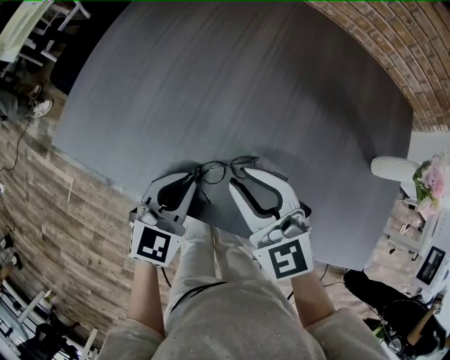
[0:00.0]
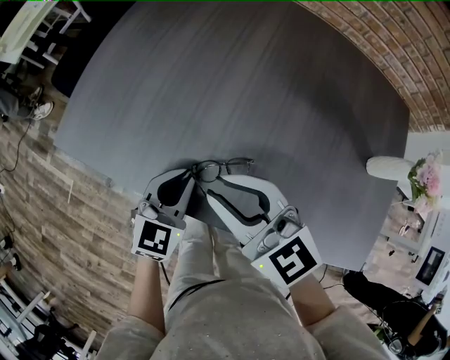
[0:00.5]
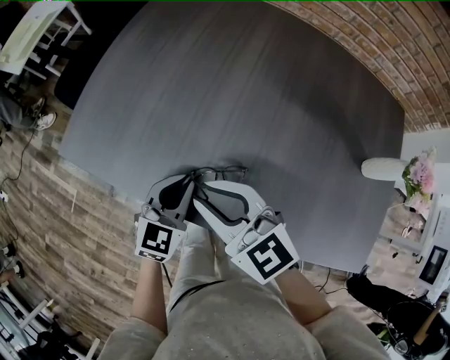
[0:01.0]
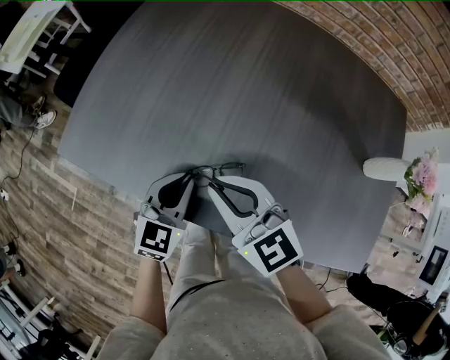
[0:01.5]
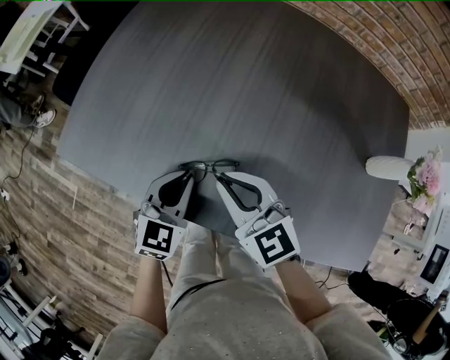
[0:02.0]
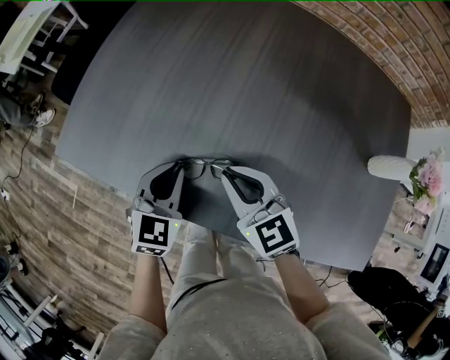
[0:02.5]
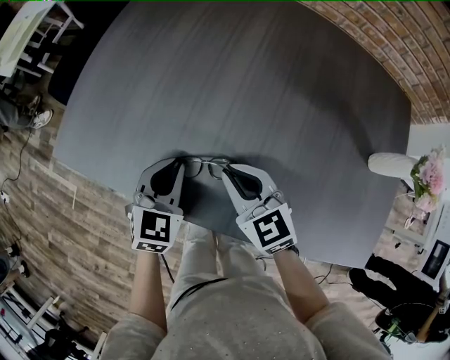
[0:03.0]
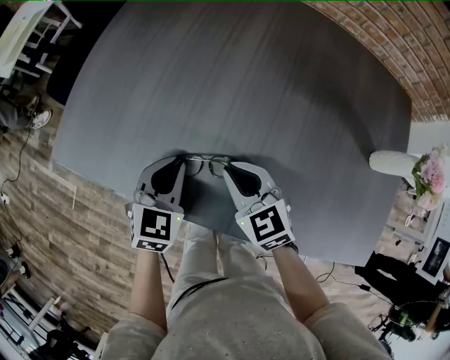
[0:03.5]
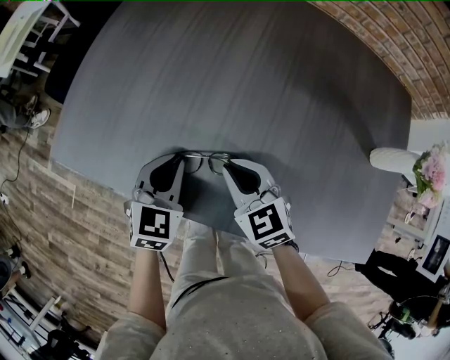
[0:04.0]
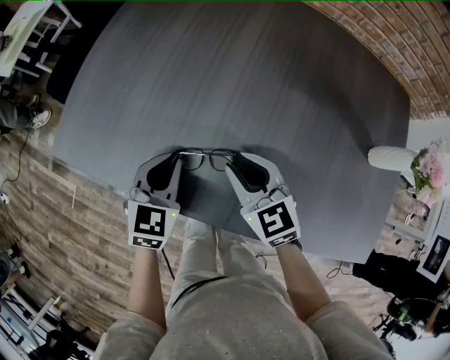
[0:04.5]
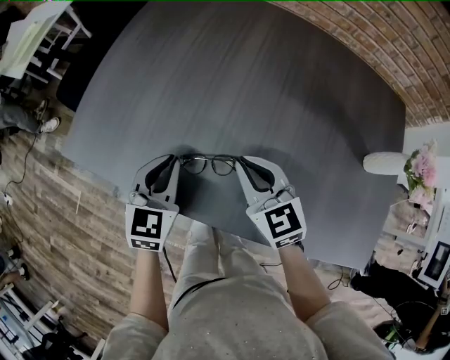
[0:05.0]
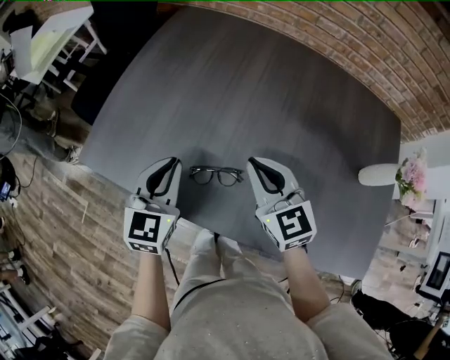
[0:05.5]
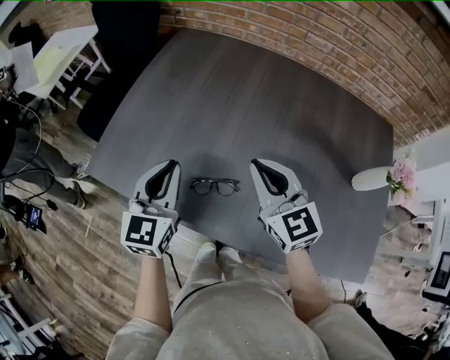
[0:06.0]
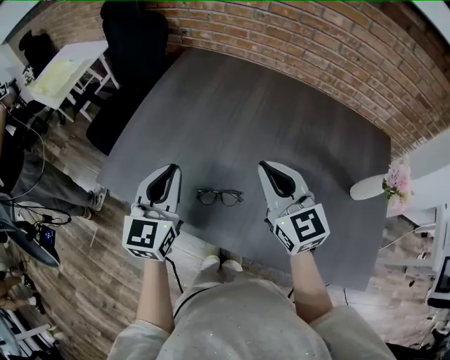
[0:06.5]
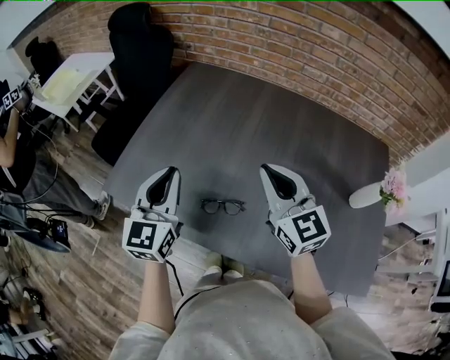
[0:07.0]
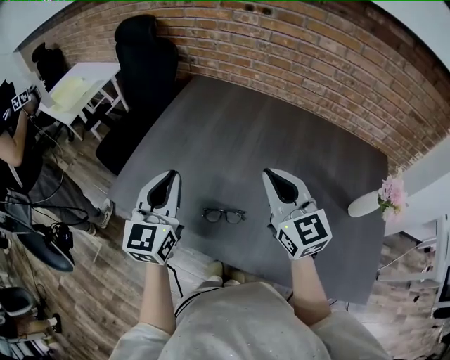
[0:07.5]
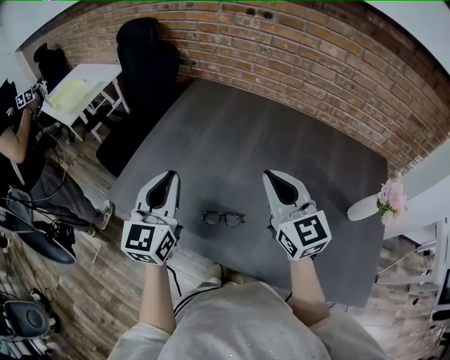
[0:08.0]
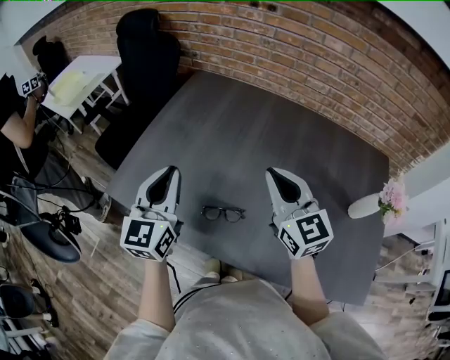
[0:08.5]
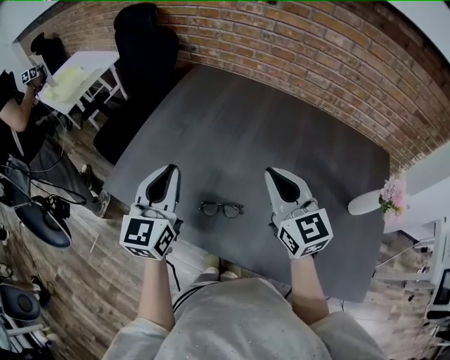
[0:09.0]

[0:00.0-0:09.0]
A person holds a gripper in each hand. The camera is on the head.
0:02.0 to 0:04.5: The right gripper heads downward, covering roughly 5 cm.
0:04.5 to 0:07.0: Both grippers move upward, about 25 cm. The left gripper rotates some 30 degrees; the right gripper turns by some 30 degrees, and closes its fingers.
0:07.0 to 0:09.0: There are only small adjustments of the grippers.

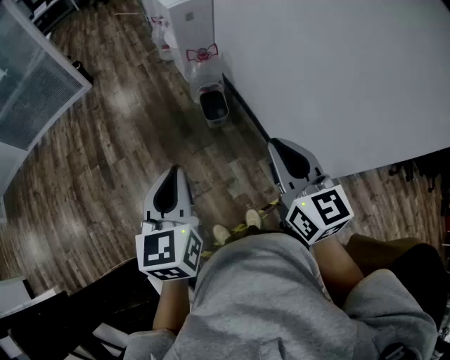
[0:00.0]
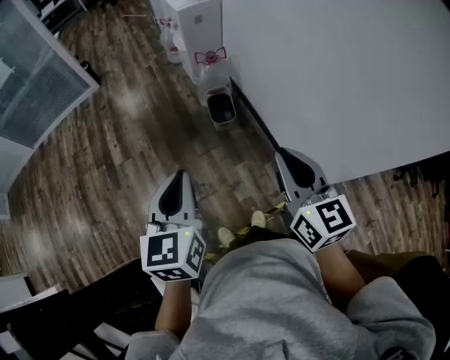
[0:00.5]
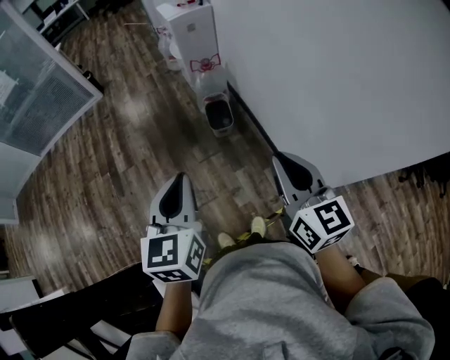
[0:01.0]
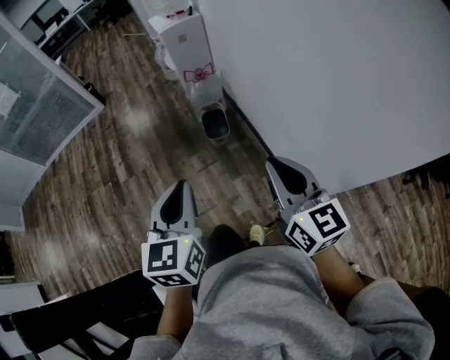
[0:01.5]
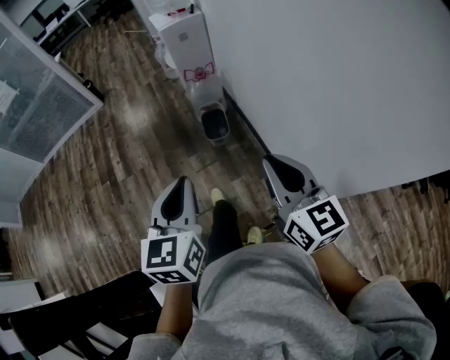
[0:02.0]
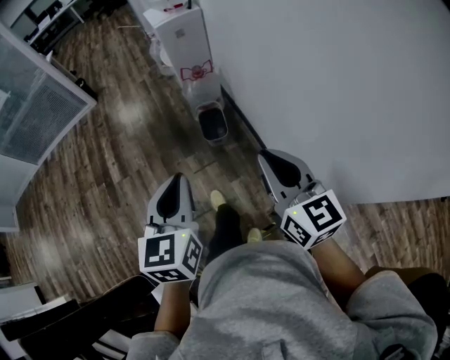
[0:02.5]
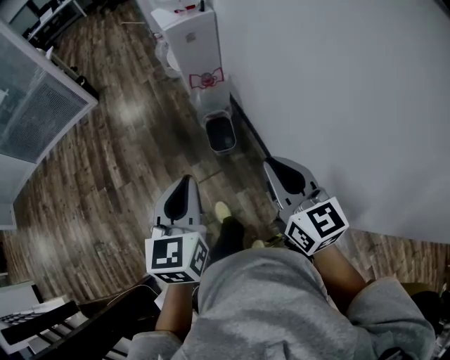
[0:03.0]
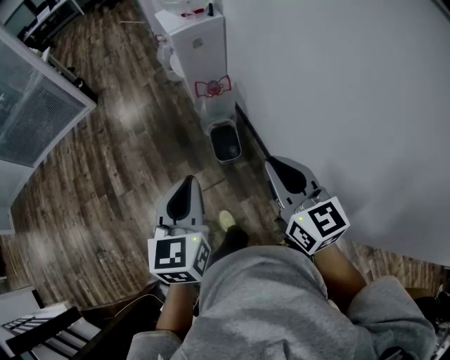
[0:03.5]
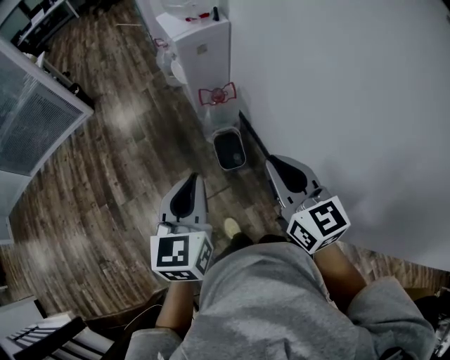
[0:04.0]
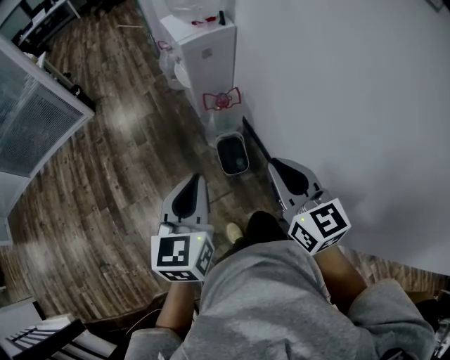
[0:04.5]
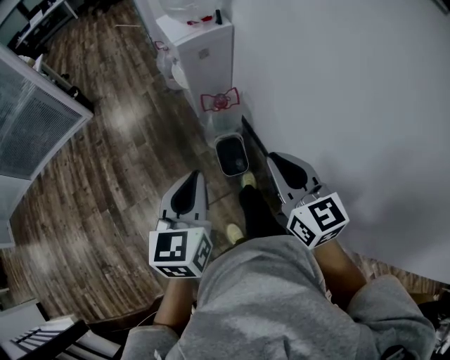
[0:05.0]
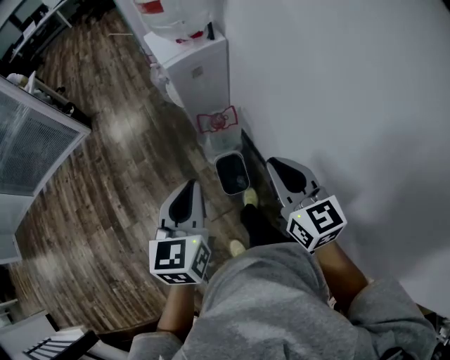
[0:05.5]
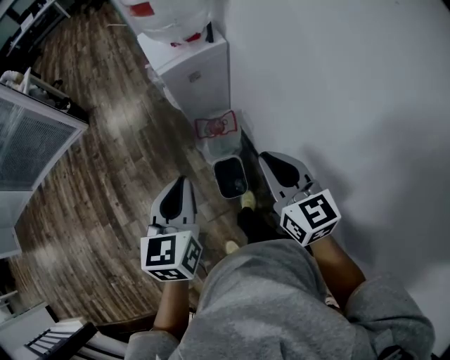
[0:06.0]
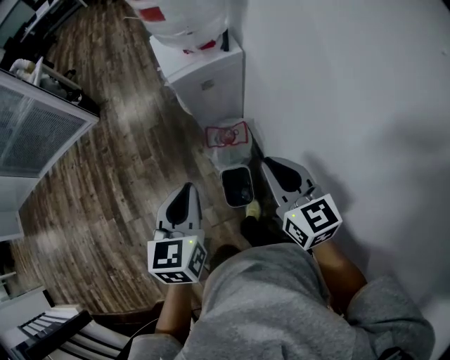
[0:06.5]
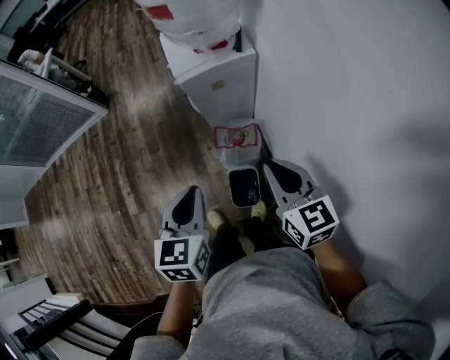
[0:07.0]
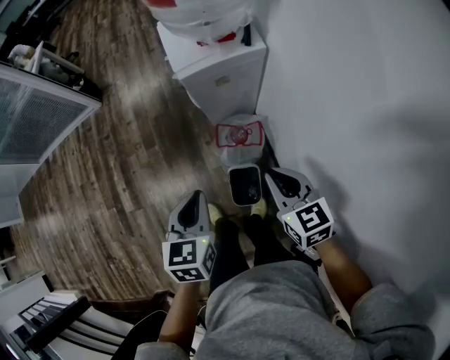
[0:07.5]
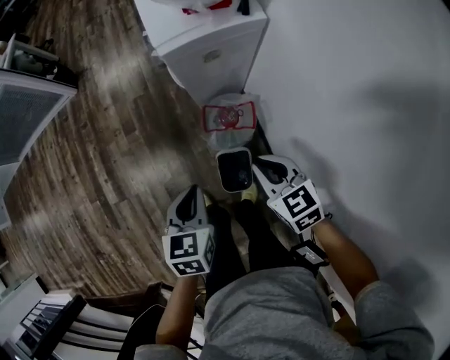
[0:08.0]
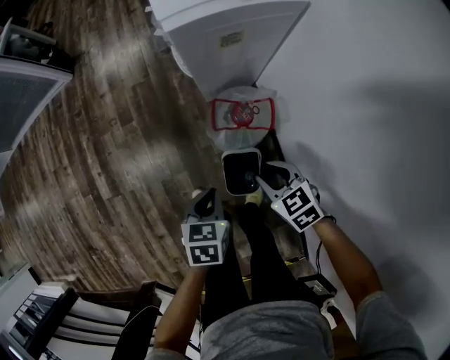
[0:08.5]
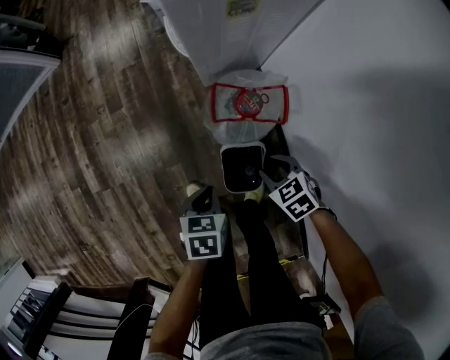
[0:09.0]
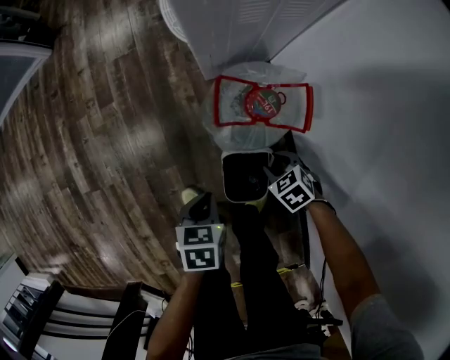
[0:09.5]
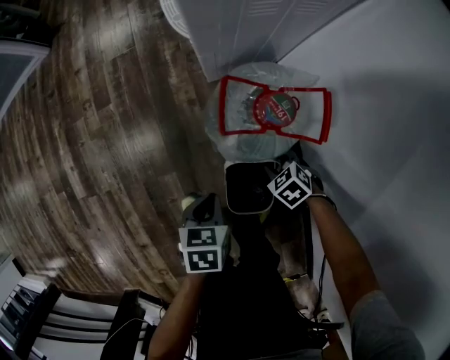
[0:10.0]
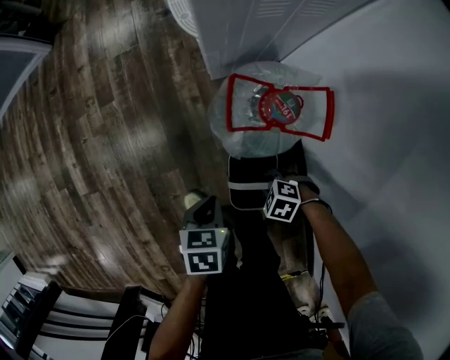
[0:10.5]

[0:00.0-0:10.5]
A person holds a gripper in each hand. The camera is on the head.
0:00.0 to 0:02.0: The grippers both shift to the right by about 10 cm.
0:02.0 to 0:04.0: Both grippers move forward, approximately 30 cm.
0:04.0 to 0:06.5: The grippers both shift forward by approximately 30 cm.
0:06.5 to 0:08.5: The two grippers go about 35 cm downward. The right gripper angles its fingers downward, by about 30 degrees, and opens up. The left gripper changes its angle by roughly 30 degrees.
0:08.5 to 0:10.5: Both grippers travel together downward, approximately 30 cm. The right gripper swivels approximately 50 degrees.

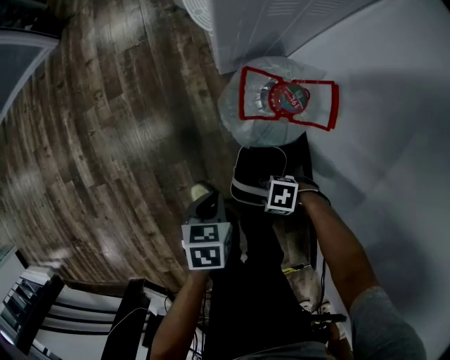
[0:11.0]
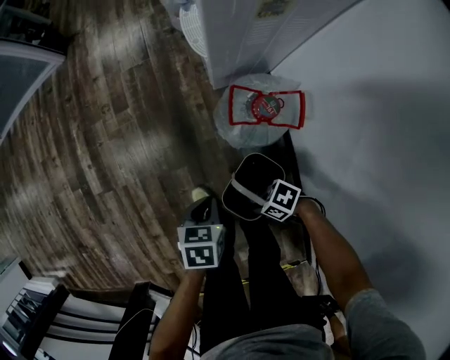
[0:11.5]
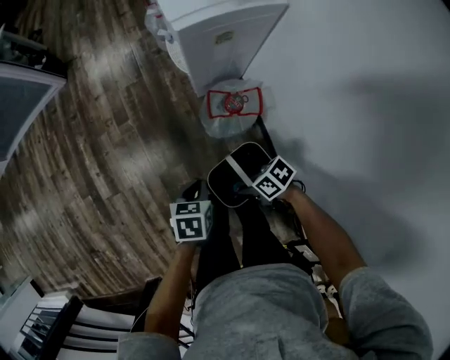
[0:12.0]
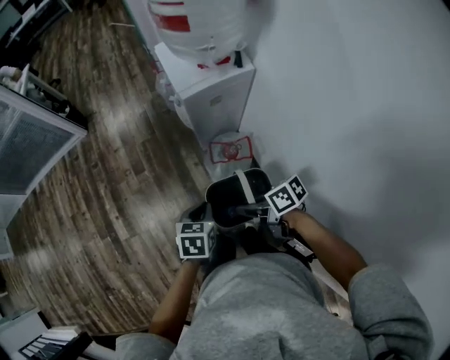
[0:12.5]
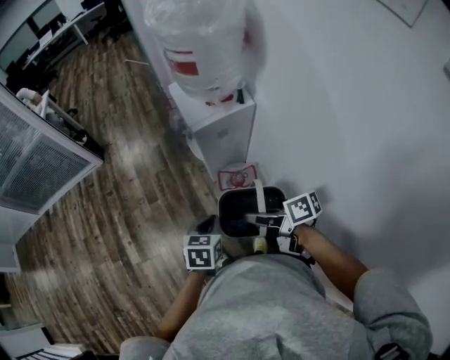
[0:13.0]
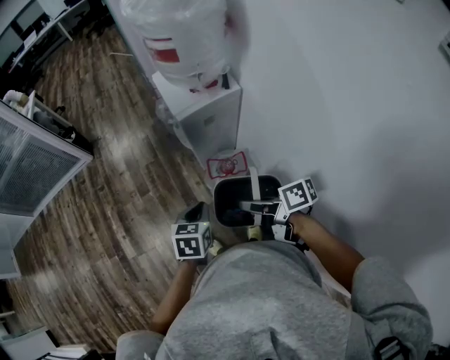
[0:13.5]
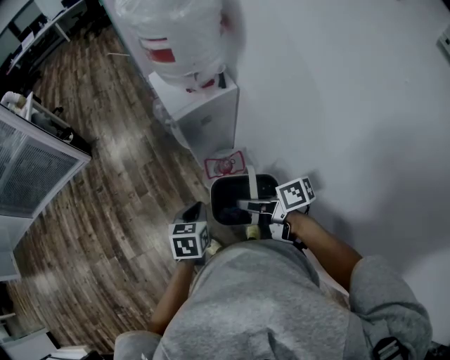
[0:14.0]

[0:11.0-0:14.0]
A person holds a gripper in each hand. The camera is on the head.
0:11.0 to 0:12.5: Both grippers travel together upward, approximately 40 cm. The right gripper turns by some 70 degrees.
0:12.5 to 0:14.0: Both grippers move upward, roughly 10 cm.

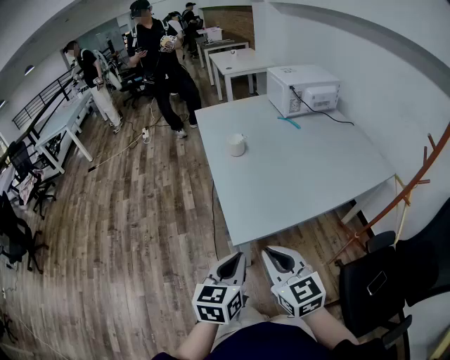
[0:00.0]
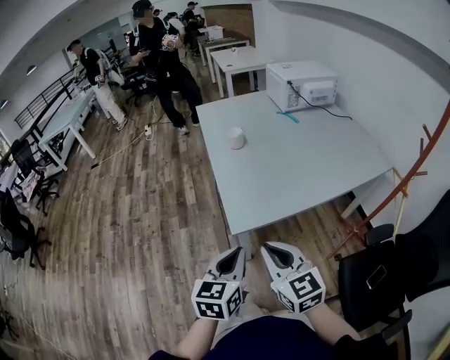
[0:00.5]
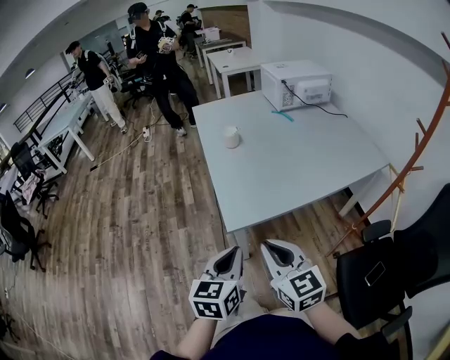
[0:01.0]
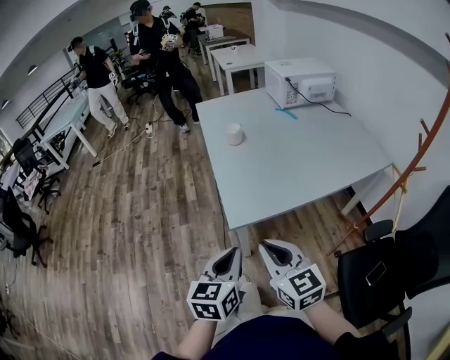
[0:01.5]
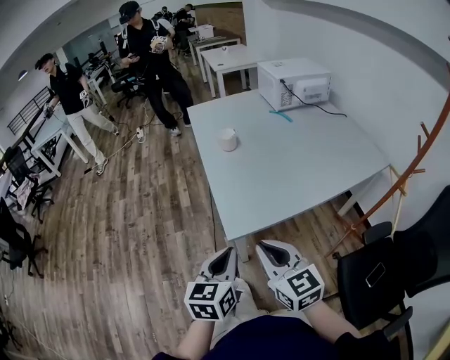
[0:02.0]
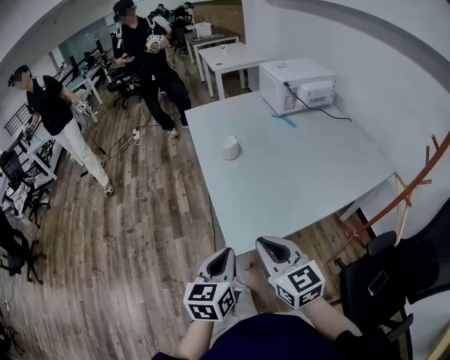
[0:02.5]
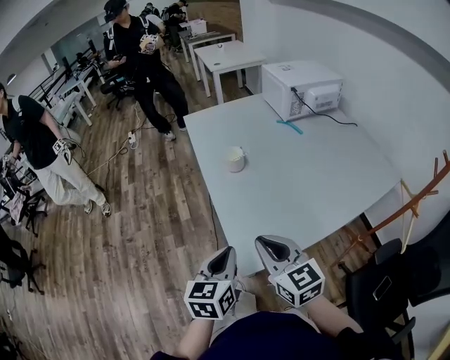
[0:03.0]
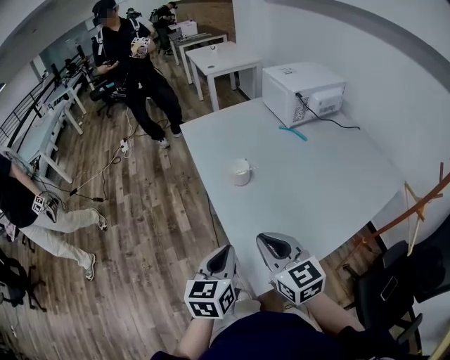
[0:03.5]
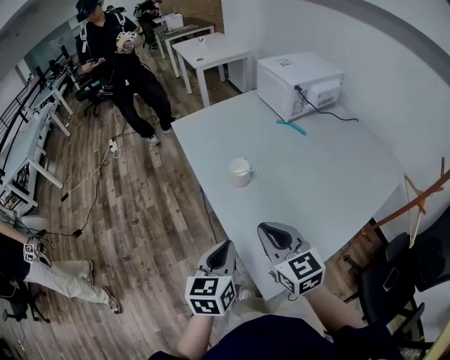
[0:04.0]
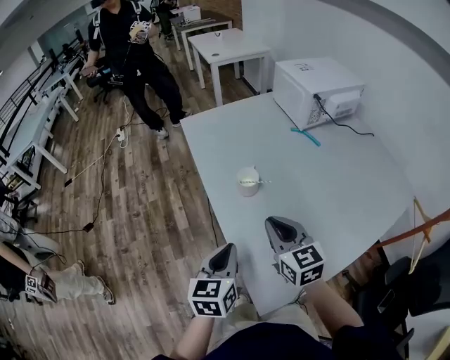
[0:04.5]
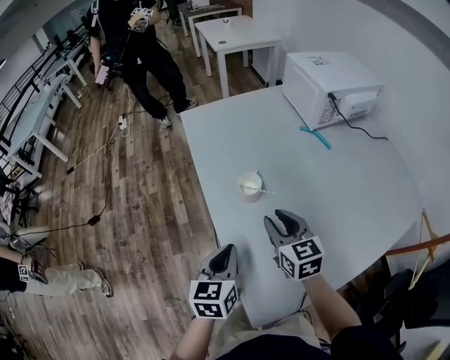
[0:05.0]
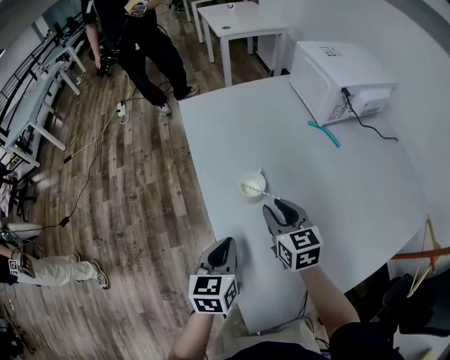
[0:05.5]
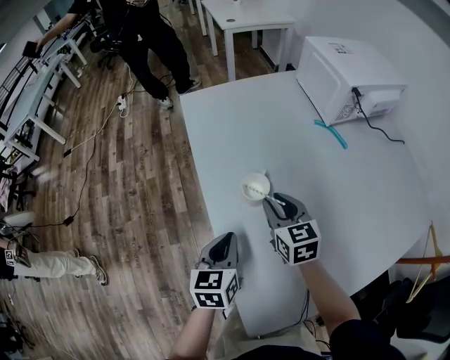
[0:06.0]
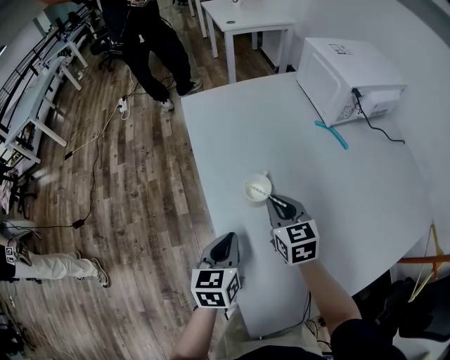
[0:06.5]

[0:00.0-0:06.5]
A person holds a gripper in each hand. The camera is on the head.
0:00.0 to 0:02.0: The grippers move only a little.
0:02.0 to 0:04.5: The grippers both shift forward by roughly 35 cm.
0:04.5 to 0:06.5: The two grippers go roughly 15 cm forward and downward.
